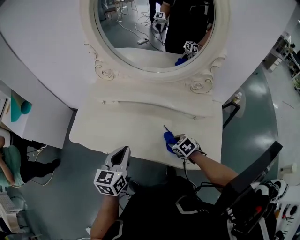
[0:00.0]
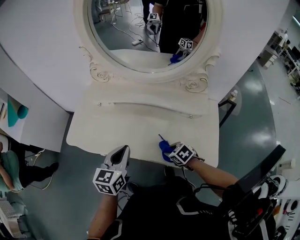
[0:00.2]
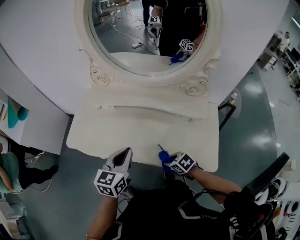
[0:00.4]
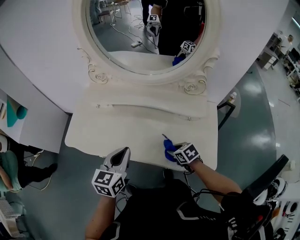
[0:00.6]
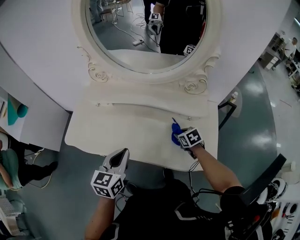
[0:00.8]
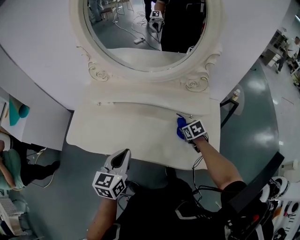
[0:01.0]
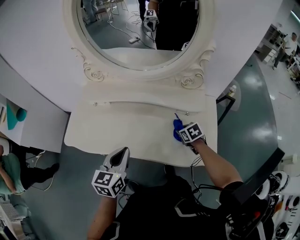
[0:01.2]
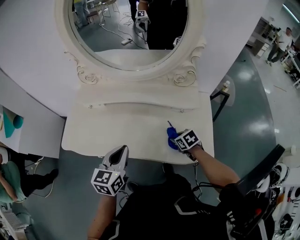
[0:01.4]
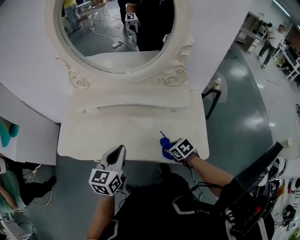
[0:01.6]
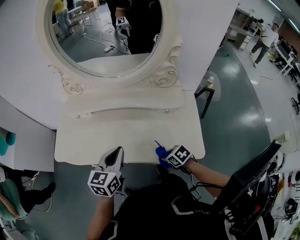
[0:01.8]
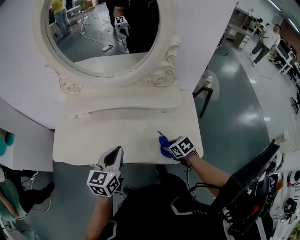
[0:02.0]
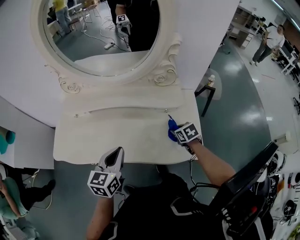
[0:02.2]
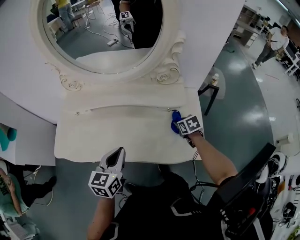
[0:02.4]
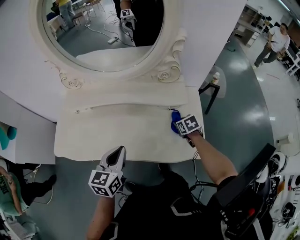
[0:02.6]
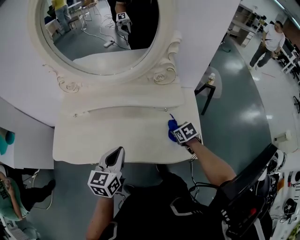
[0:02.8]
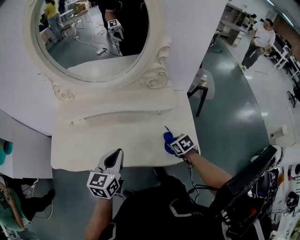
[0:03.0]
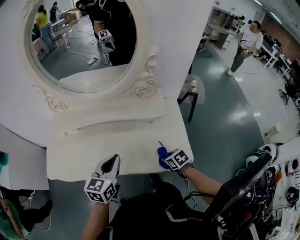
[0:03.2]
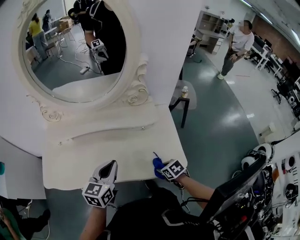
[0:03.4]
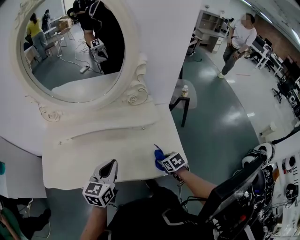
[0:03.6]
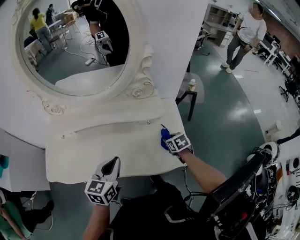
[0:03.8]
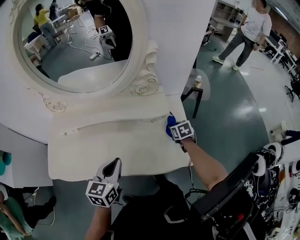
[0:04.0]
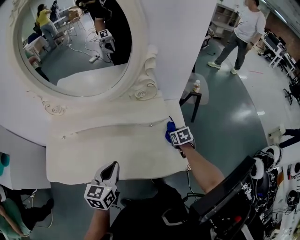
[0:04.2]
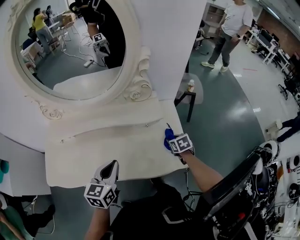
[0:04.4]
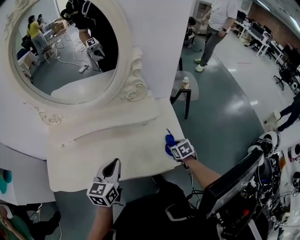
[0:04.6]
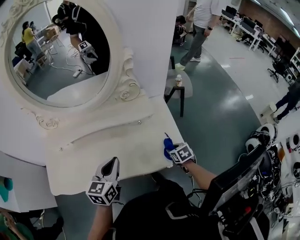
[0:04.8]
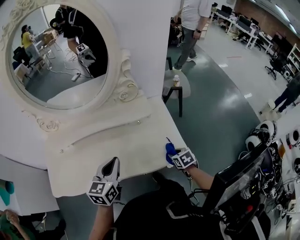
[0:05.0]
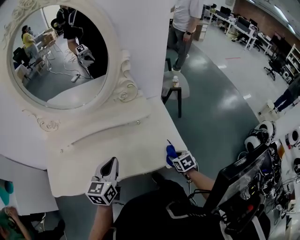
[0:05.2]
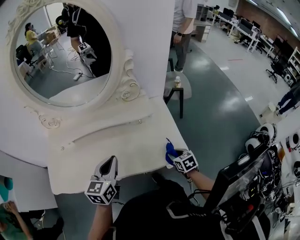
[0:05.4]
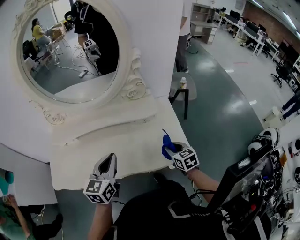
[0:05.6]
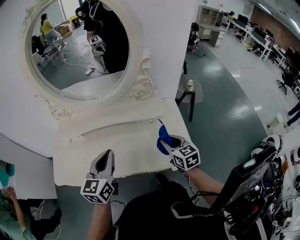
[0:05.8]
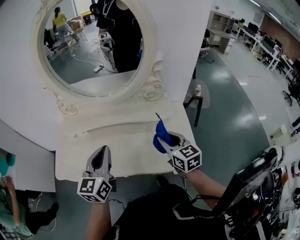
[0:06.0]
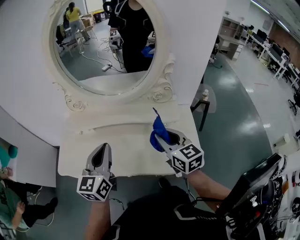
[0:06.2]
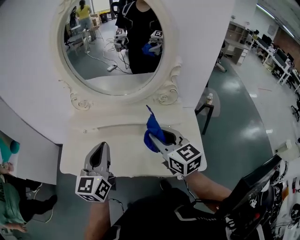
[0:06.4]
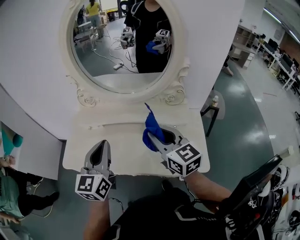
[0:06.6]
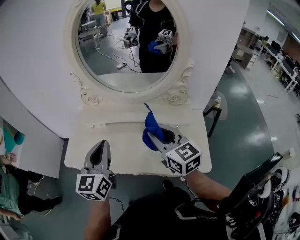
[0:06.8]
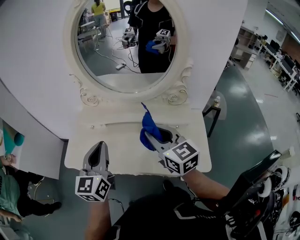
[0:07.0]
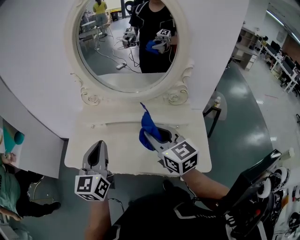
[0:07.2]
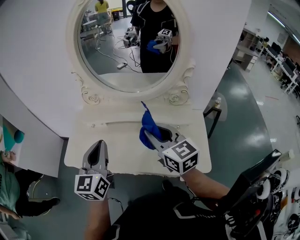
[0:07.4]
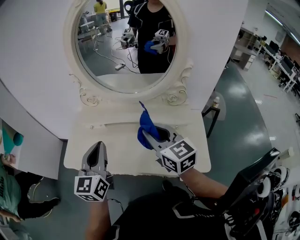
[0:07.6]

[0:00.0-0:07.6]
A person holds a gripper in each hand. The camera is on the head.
0:00.0 to 0:01.6: The right gripper is displaced backward by some 5 cm, and moves roughly 10 cm to the right and comes back. The left gripper is displaced to the right by about 5 cm.
0:01.6 to 0:03.0: The right gripper goes forward and backward, roughly 15 cm each way, reversing 2 times.
0:03.0 to 0:04.6: The right gripper swings forward and backward, roughly 20 cm each way, with 2 reversals.
0:04.6 to 0:06.0: The left gripper moves upward and to the left, approximately 15 cm, and rotates about 20 degrees. The right gripper goes approximately 25 cm upward and to the left, and points its fingers some 40 degrees further upward.
0:06.0 to 0:07.6: The left gripper heads to the left, covering about 10 cm; the right gripper travels to the left and upward by roughly 20 cm.

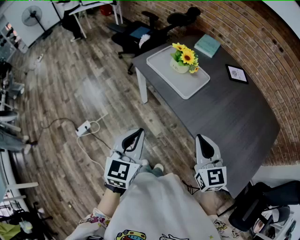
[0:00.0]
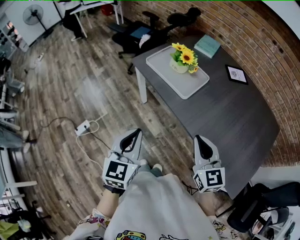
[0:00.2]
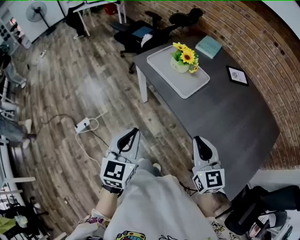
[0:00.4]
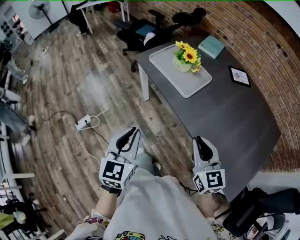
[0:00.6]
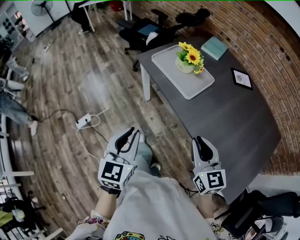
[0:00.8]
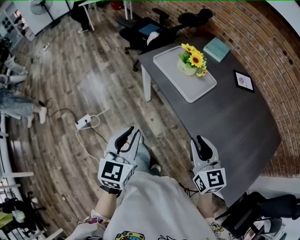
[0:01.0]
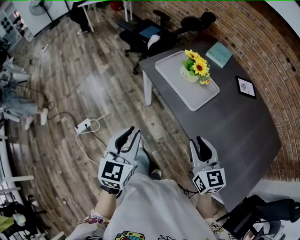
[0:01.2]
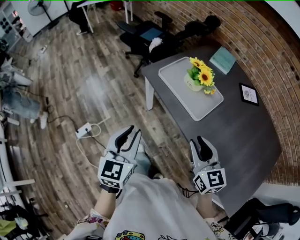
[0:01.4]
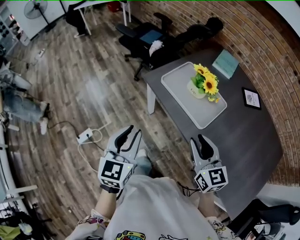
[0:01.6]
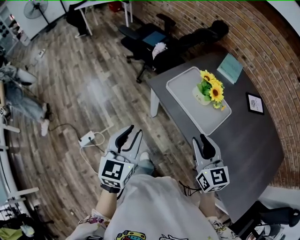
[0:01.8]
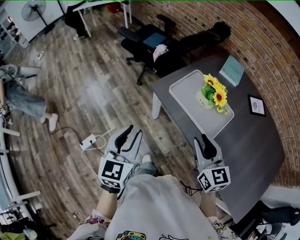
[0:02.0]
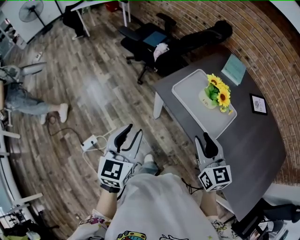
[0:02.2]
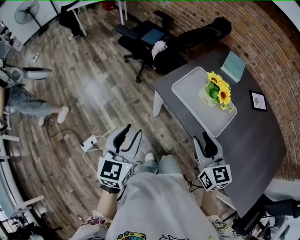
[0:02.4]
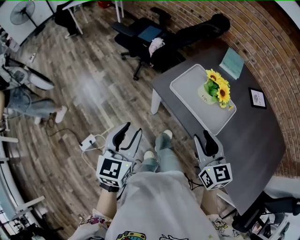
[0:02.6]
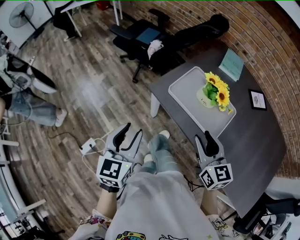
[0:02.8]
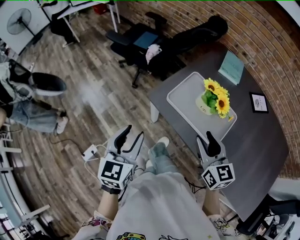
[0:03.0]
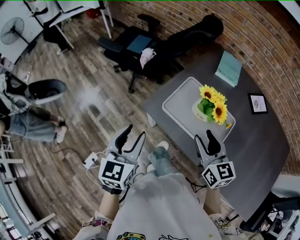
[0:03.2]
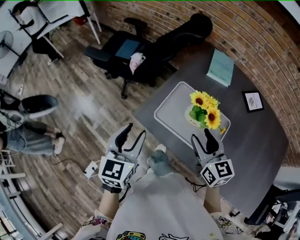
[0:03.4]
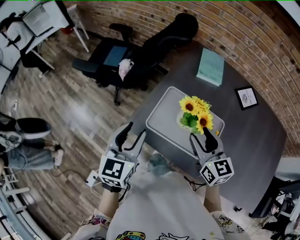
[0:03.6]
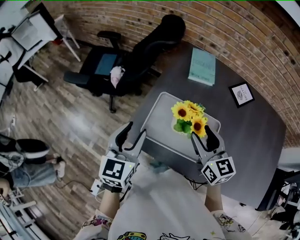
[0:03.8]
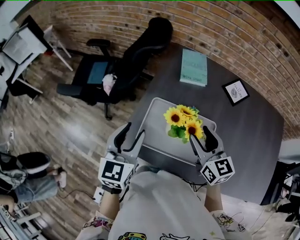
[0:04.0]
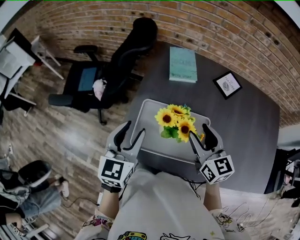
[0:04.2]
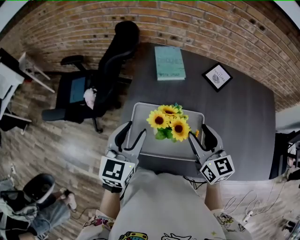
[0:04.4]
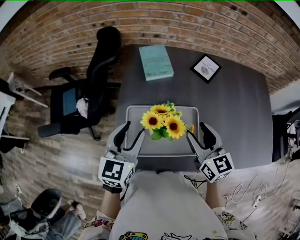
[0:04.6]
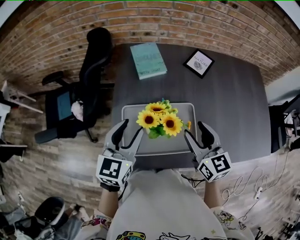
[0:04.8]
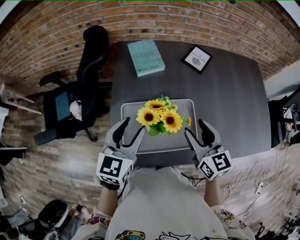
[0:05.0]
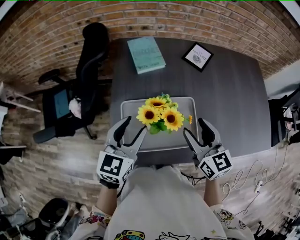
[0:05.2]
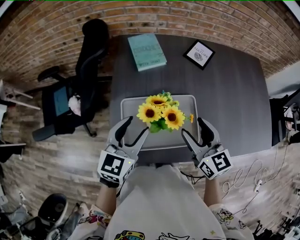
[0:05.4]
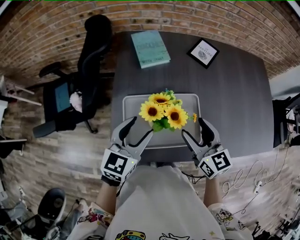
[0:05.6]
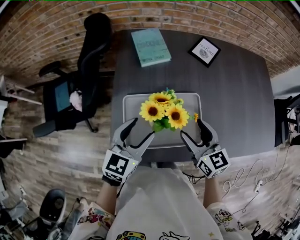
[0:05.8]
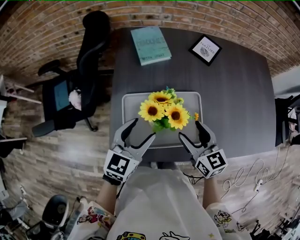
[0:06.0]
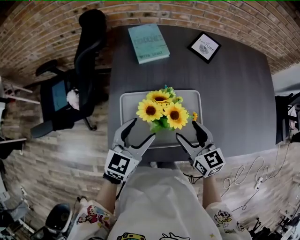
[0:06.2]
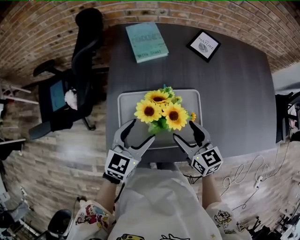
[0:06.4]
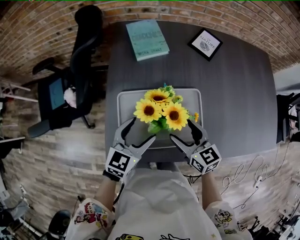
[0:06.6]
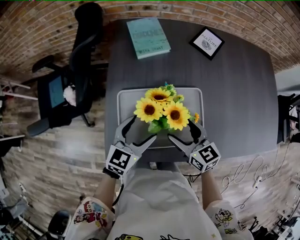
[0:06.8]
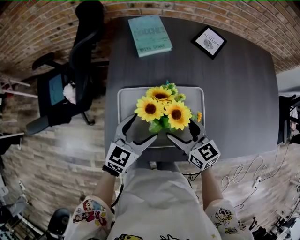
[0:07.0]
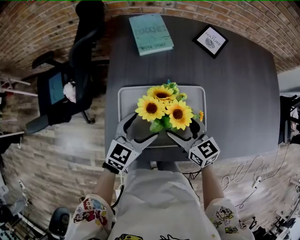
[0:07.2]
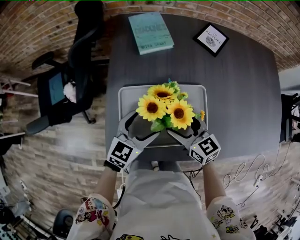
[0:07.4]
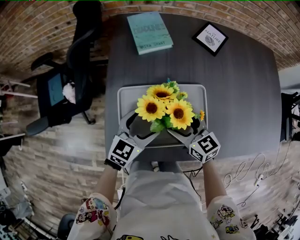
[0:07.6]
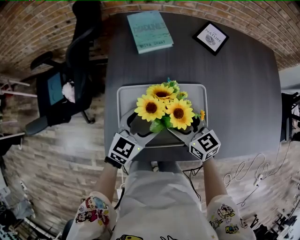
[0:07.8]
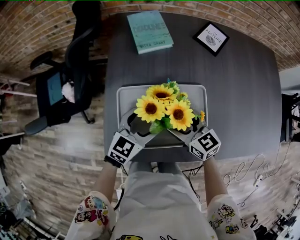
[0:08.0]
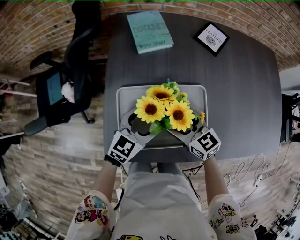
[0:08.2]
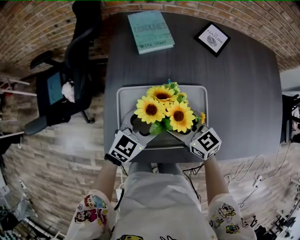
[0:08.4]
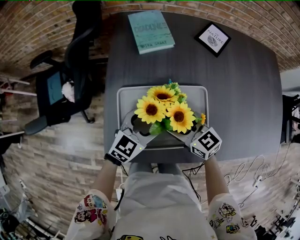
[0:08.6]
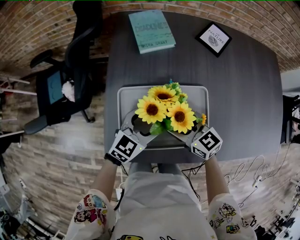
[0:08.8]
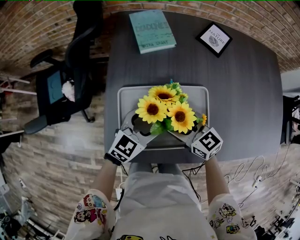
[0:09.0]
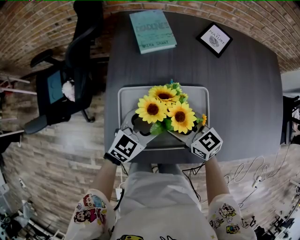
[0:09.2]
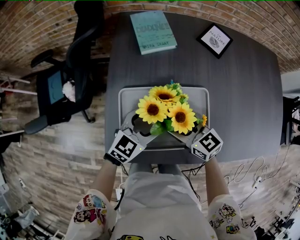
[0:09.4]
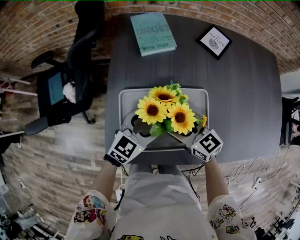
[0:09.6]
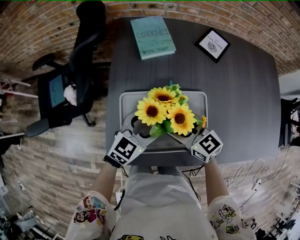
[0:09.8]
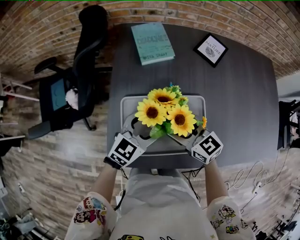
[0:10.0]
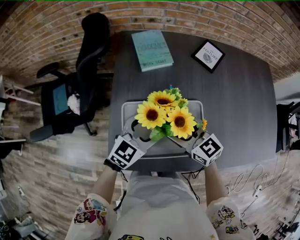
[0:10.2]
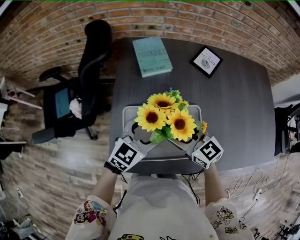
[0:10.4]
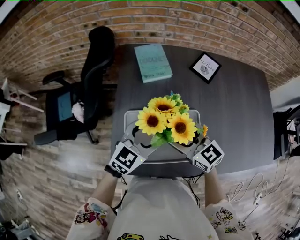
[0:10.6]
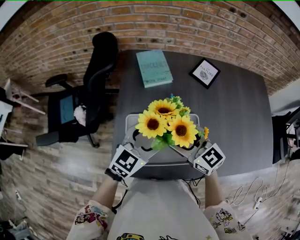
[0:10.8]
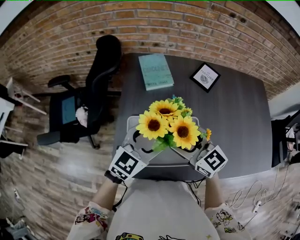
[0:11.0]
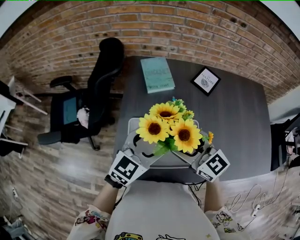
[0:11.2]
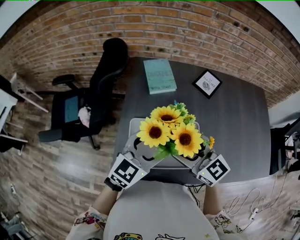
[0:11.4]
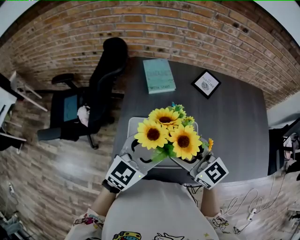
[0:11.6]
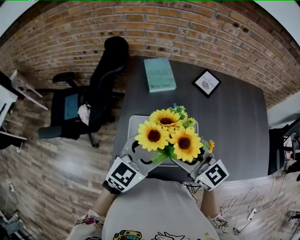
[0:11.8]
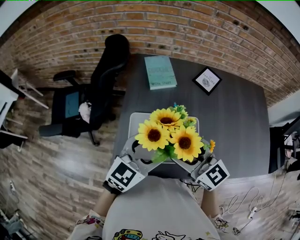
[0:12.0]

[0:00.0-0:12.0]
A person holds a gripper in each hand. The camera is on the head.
0:00.0 to 0:01.6: Both grippers move forward and to the left, some 20 cm.
0:01.6 to 0:03.0: Both grippers travel together forward, some 15 cm.
0:03.0 to 0:04.4: The left gripper ends up approximately 30 cm from where it was, and swivels some 40 degrees. The right gripper moves approximately 20 cm, and changes its angle by about 30 degrees.
0:04.4 to 0:06.0: Both grippers travel together downward, roughly 10 cm. The left gripper rotates roughly 20 degrees.
0:06.0 to 0:07.6: The two grippers go about 10 cm downward.
0:07.6 to 0:09.0: The grippers make only small movements.
0:09.0 to 0:10.4: The grippers both shift upward by about 10 cm.
0:10.4 to 0:12.0: Both grippers travel together upward and backward, some 15 cm.

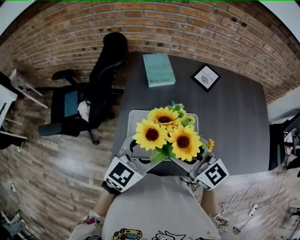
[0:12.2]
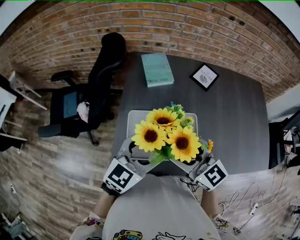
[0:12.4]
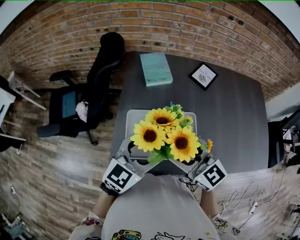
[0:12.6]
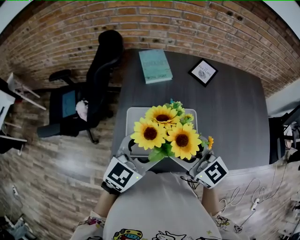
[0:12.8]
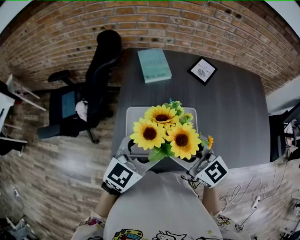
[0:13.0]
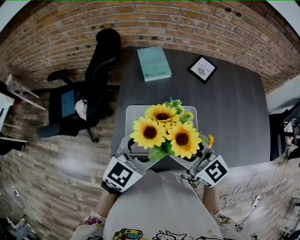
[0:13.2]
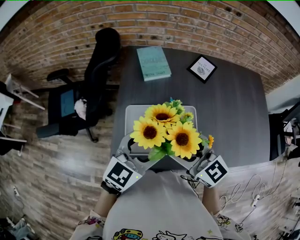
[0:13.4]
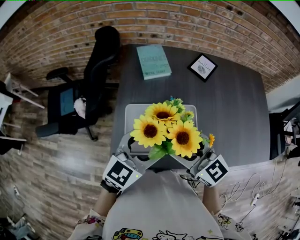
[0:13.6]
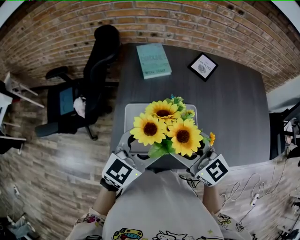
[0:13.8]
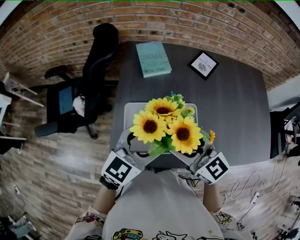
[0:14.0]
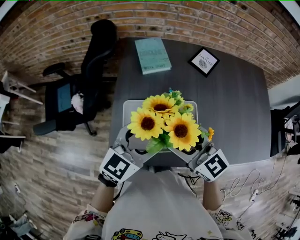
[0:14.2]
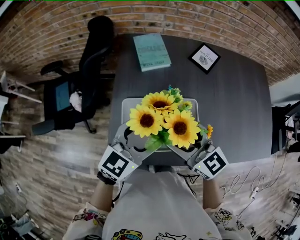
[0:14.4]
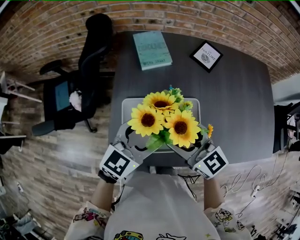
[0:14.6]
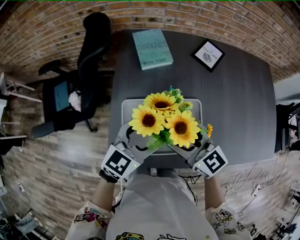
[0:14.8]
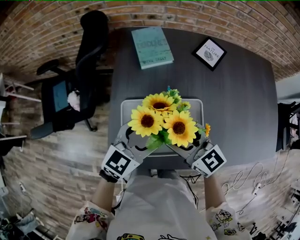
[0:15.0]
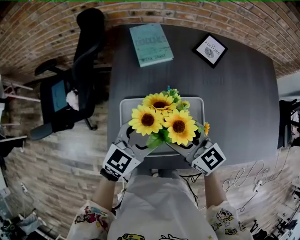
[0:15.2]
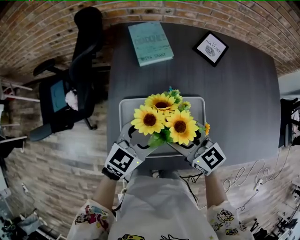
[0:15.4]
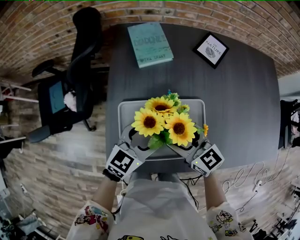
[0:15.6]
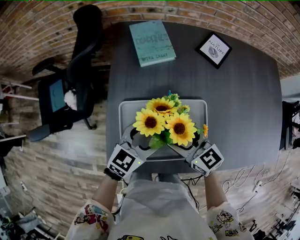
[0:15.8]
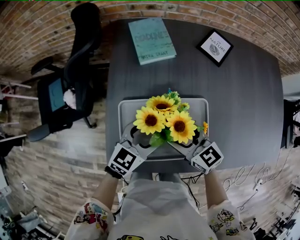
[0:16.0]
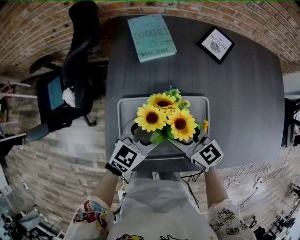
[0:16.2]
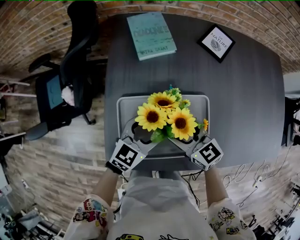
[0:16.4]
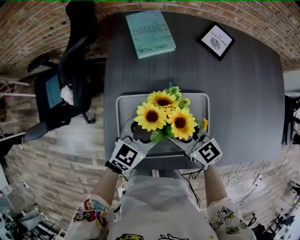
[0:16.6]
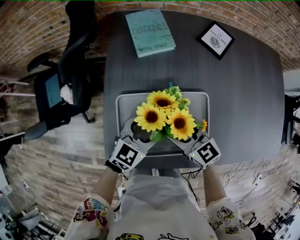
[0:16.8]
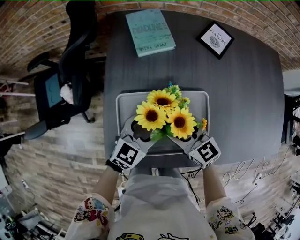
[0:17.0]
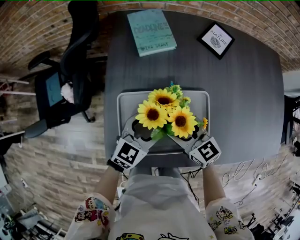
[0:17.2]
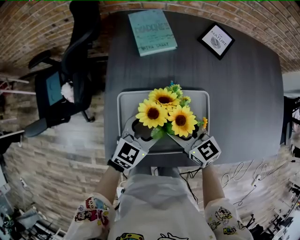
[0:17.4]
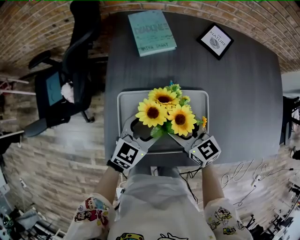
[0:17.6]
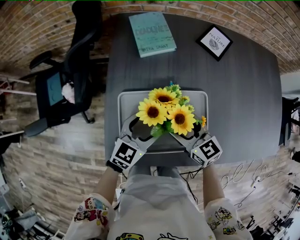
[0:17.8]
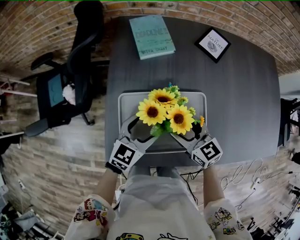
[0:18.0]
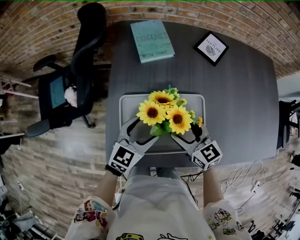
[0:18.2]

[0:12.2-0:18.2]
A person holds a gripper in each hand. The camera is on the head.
0:12.2 to 0:13.8: The two grippers keep their place.
0:13.8 to 0:15.2: Both grippers move downward and forward, roughly 10 cm.
0:15.2 to 0:16.6: The grippers both shift downward by approximately 10 cm.
0:16.6 to 0:18.2: There are only small adjustments of the grippers.
